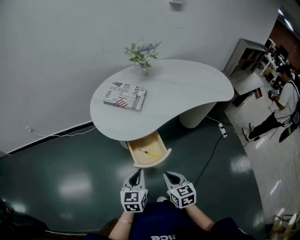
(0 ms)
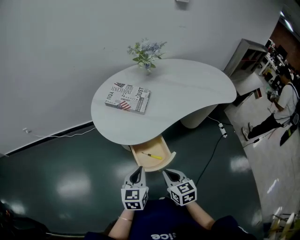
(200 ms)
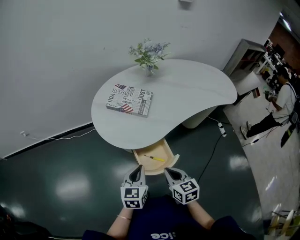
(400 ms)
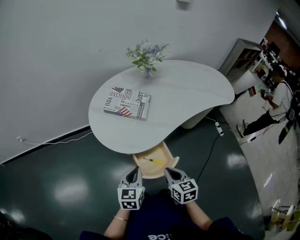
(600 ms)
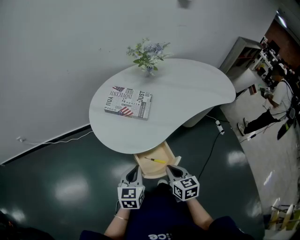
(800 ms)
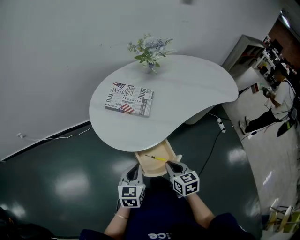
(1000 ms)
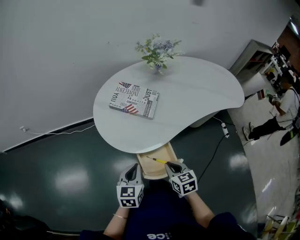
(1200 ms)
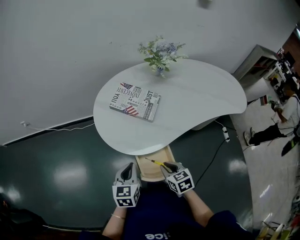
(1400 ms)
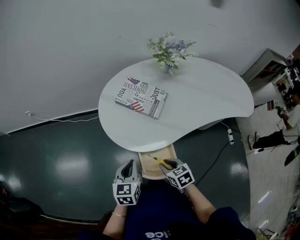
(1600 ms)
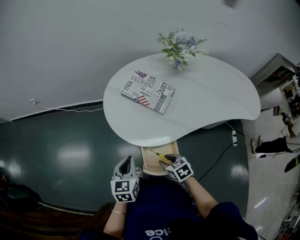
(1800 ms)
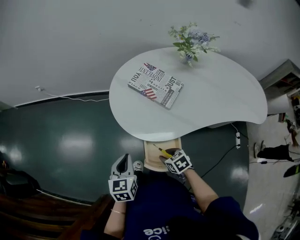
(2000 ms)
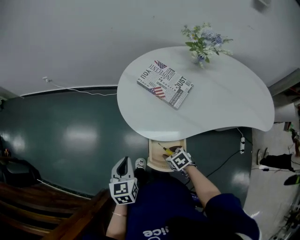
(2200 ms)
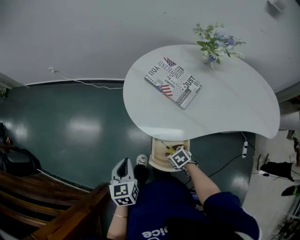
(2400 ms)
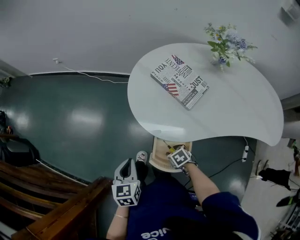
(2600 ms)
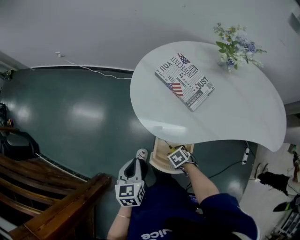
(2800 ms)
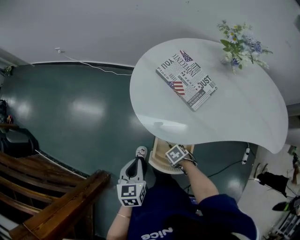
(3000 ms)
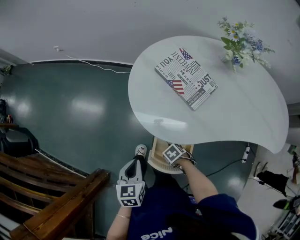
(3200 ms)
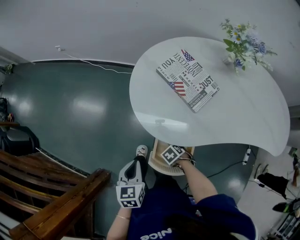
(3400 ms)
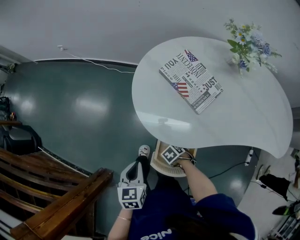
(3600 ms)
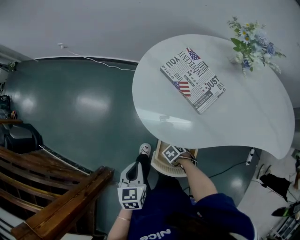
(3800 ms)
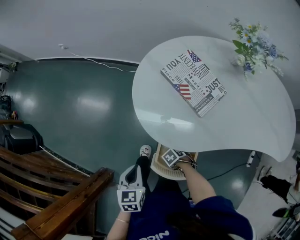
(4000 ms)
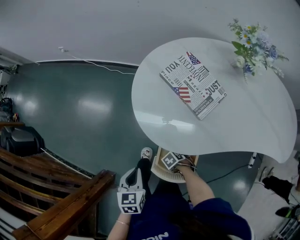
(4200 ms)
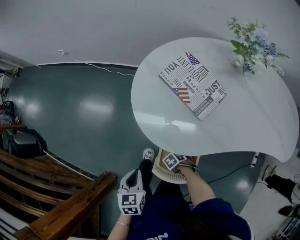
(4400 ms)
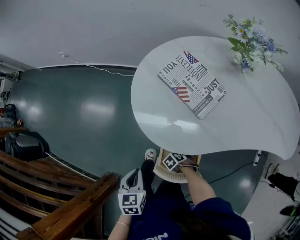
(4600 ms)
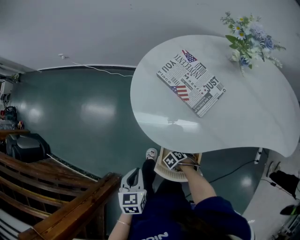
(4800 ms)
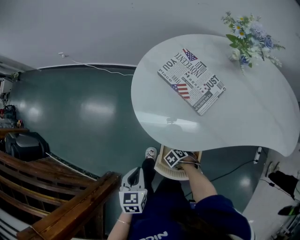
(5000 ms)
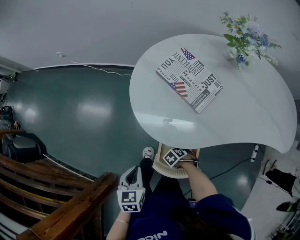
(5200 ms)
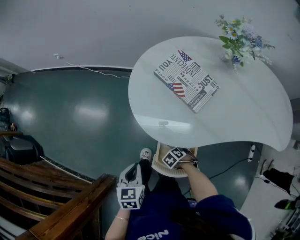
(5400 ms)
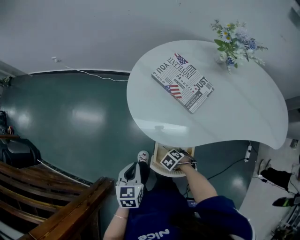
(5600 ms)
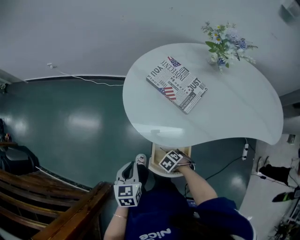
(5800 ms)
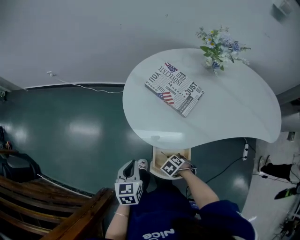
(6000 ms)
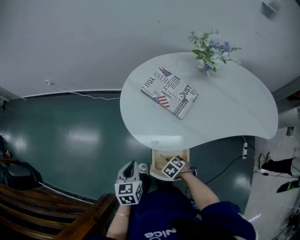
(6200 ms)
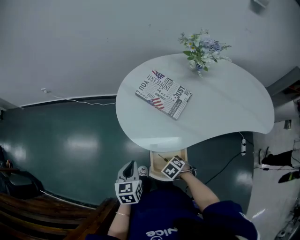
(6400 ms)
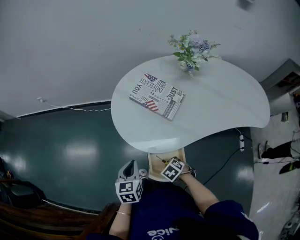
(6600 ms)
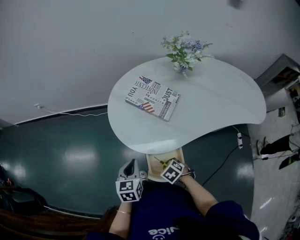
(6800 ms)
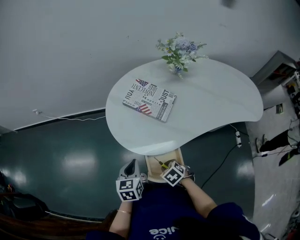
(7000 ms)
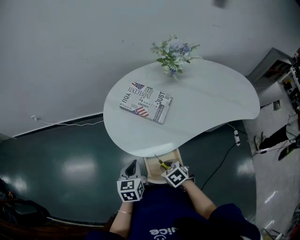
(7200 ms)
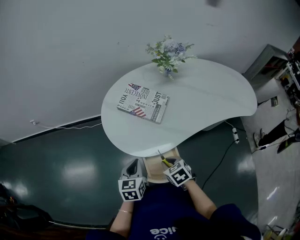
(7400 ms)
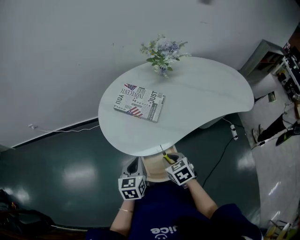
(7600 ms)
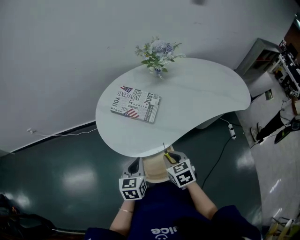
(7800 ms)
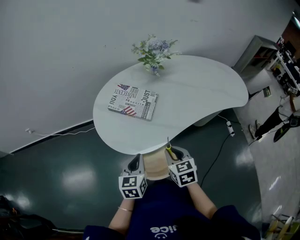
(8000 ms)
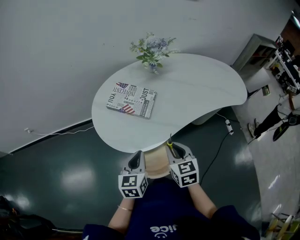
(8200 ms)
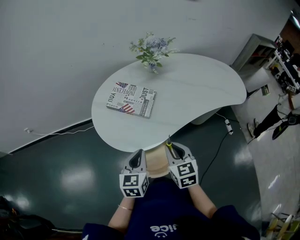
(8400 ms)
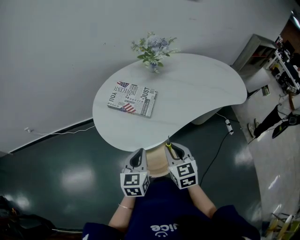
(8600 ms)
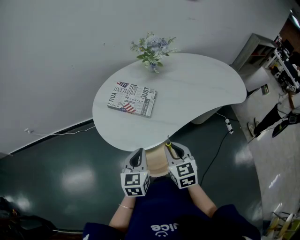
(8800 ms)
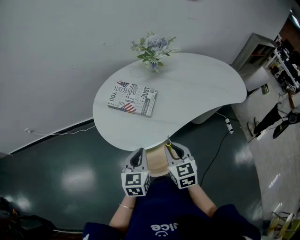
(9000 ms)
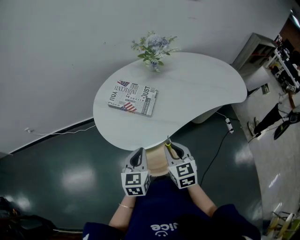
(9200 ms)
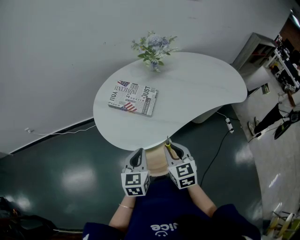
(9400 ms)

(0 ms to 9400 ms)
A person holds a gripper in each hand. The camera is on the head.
0 ms - 1600 ms: The right gripper shifts approximately 15 cm forward and downward, rotates approximately 30 degrees, and opens its fingers, while the left gripper heads forward and to the left, covering roughly 15 cm.
1600 ms - 3200 ms: The right gripper travels downward by approximately 20 cm, turns by approximately 50 degrees, and opens up. Meanwhile the left gripper ends up approximately 10 cm from where it was, and rotates some 30 degrees.
3200 ms - 4800 ms: The right gripper heads downward, covering some 5 cm, and closes.
4800 ms - 6200 ms: The right gripper shifts some 10 cm upward. The left gripper moves roughly 5 cm.
6200 ms - 7800 ms: The right gripper goes about 20 cm upward, and tips its fingers upward by roughly 40 degrees. The left gripper moves approximately 10 cm, and changes its angle by about 20 degrees.
7800 ms - 9400 ms: The right gripper heads upward, covering about 5 cm.

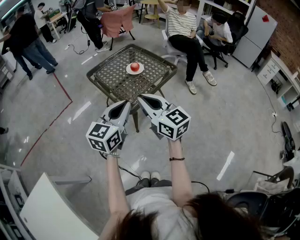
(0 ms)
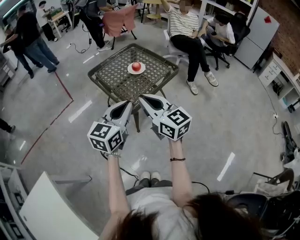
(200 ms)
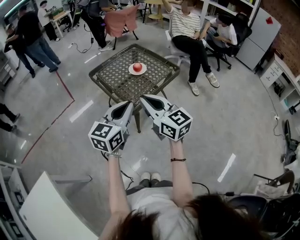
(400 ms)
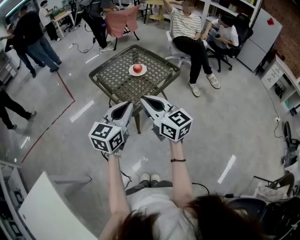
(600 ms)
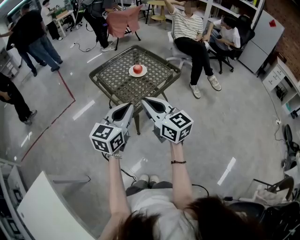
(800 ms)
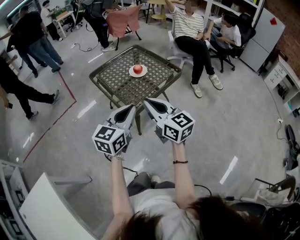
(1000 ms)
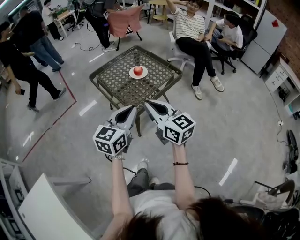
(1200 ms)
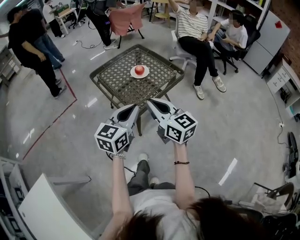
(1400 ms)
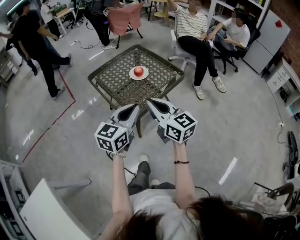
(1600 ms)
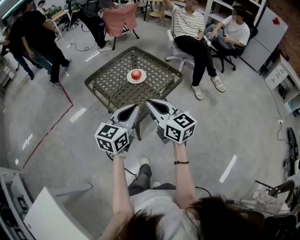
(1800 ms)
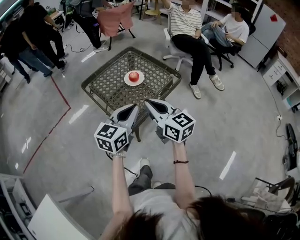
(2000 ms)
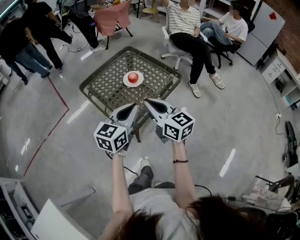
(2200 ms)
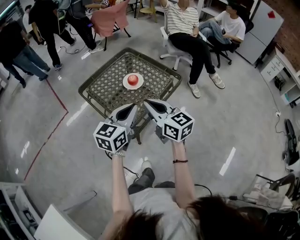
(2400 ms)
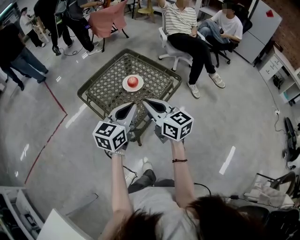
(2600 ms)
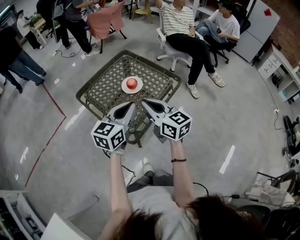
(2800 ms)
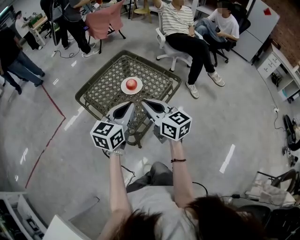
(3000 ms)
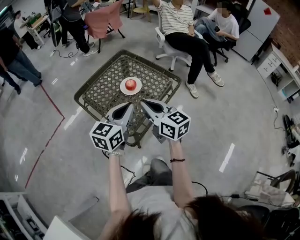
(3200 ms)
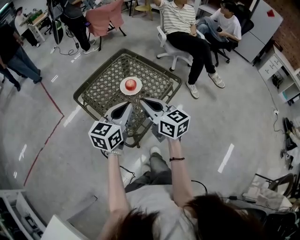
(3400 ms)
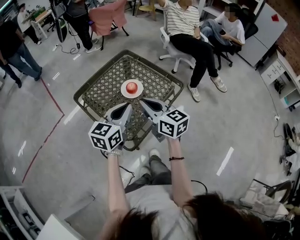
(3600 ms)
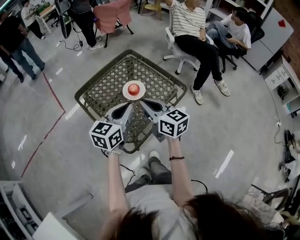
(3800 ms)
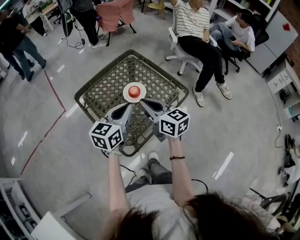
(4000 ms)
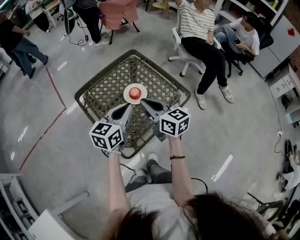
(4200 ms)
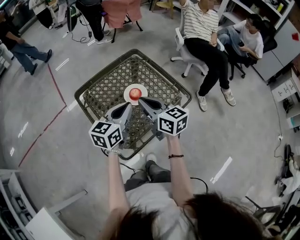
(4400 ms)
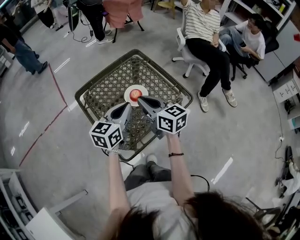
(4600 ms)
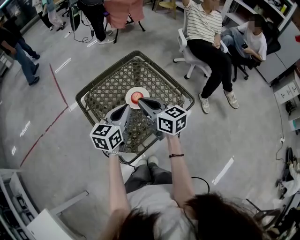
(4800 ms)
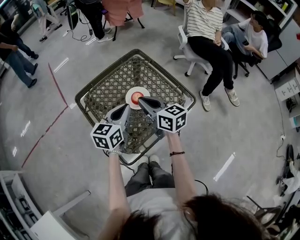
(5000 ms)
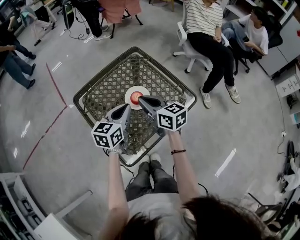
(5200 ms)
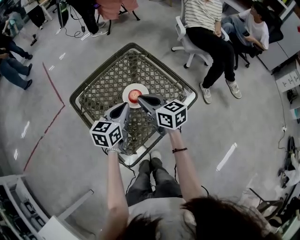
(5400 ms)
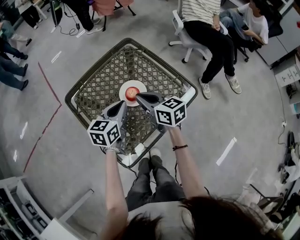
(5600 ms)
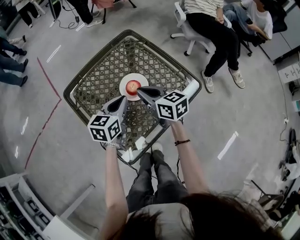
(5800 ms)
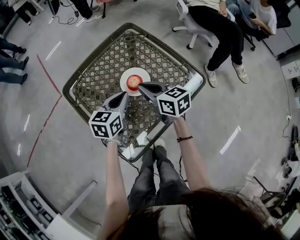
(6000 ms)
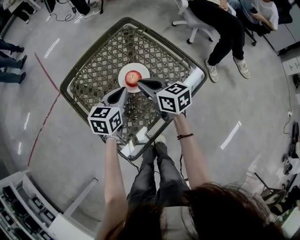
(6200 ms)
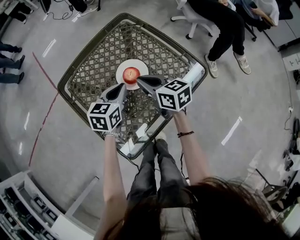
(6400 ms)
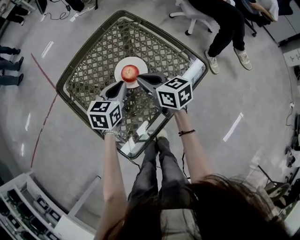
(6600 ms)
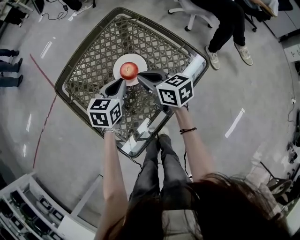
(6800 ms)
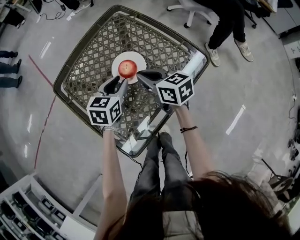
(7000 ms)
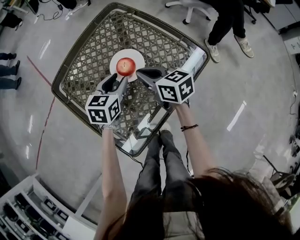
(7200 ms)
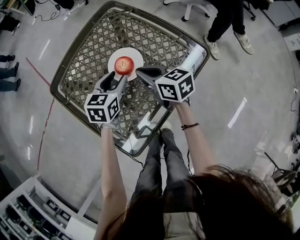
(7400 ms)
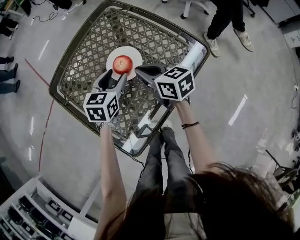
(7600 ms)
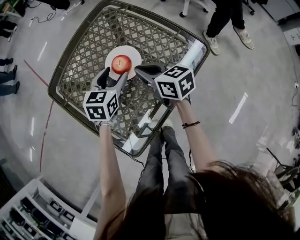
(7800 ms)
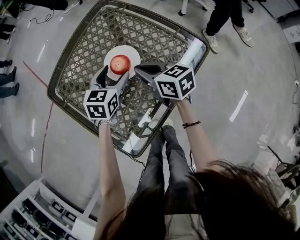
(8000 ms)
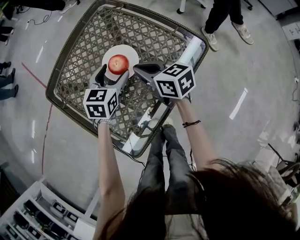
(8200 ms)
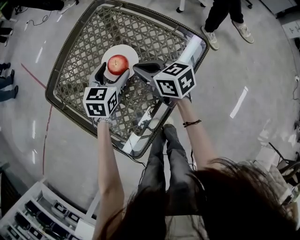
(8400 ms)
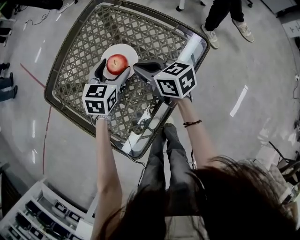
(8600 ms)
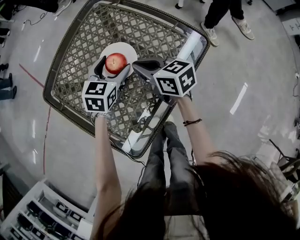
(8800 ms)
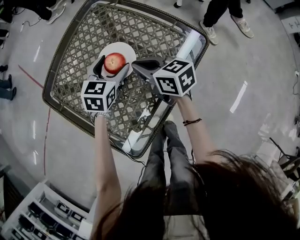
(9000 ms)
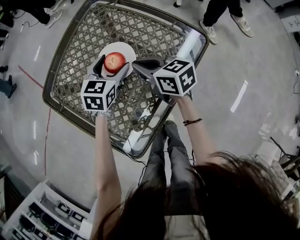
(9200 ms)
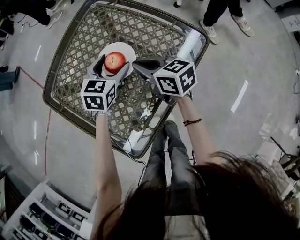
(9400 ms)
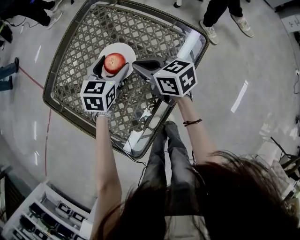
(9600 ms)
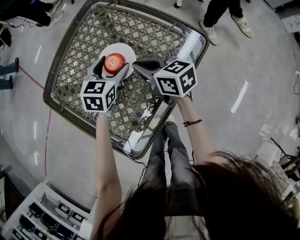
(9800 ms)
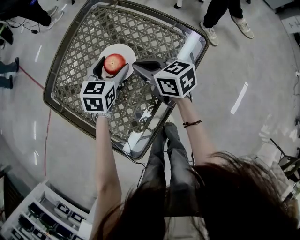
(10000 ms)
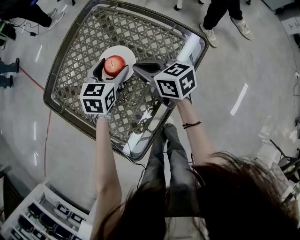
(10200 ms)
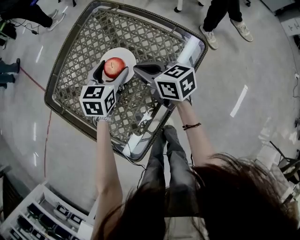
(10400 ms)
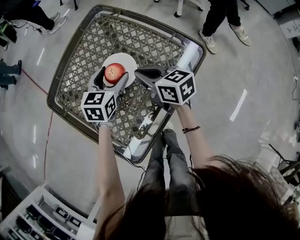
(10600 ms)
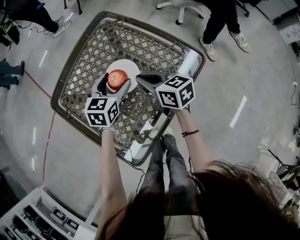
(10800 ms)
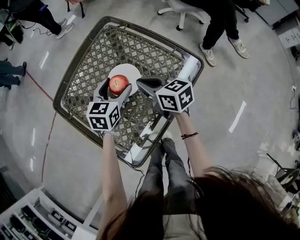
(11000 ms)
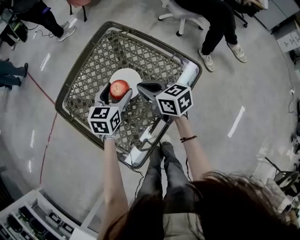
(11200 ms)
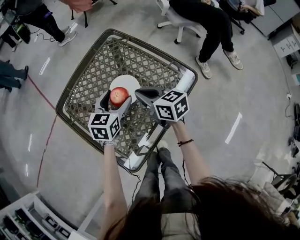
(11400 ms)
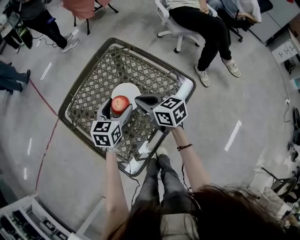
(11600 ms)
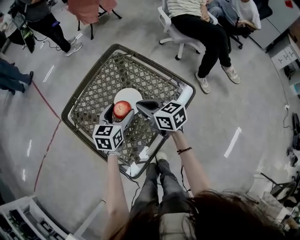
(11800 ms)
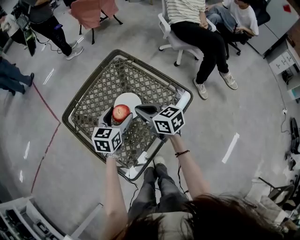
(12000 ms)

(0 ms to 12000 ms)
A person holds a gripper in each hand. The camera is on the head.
0 ms - 1600 ms: Both grippers travel together forward and to the right, about 10 cm.
1600 ms - 3000 ms: The two grippers go approximately 15 cm forward.
3000 ms - 4400 ms: Both grippers move forward, some 15 cm.
4400 ms - 6000 ms: Both grippers travel together downward and forward, about 15 cm.
6000 ms - 7600 ms: The grippers both shift downward by about 10 cm. The left gripper opens its fingers.
7600 ms - 9000 ms: The left gripper ends up some 5 cm from where it was, and opens up.
9000 ms - 10400 ms: Neither gripper changes place.
10400 ms - 12000 ms: The right gripper travels upward by roughly 10 cm. Meanwhile the left gripper travels upward and backward by some 10 cm.

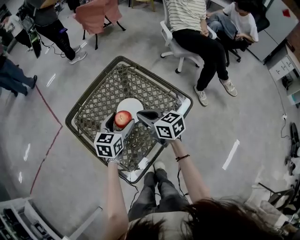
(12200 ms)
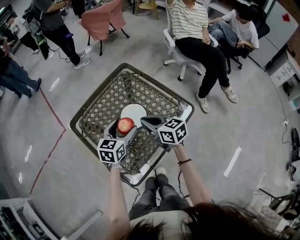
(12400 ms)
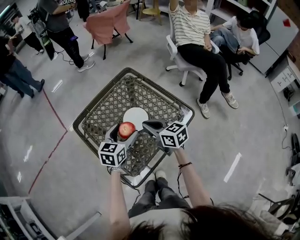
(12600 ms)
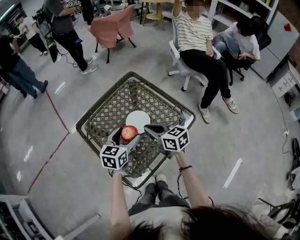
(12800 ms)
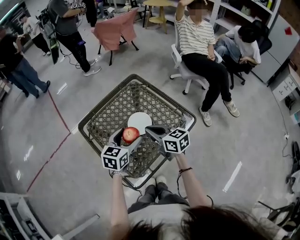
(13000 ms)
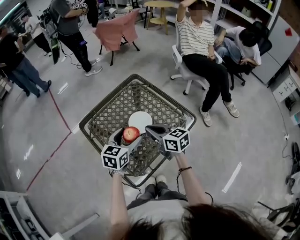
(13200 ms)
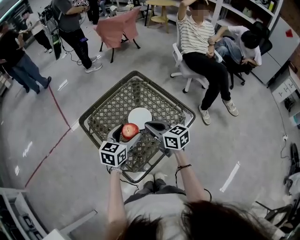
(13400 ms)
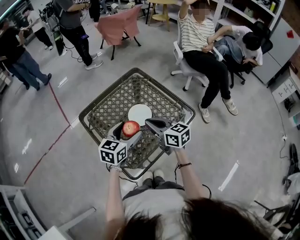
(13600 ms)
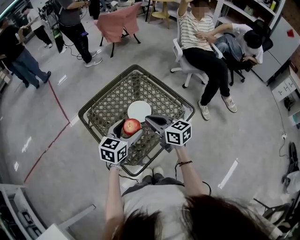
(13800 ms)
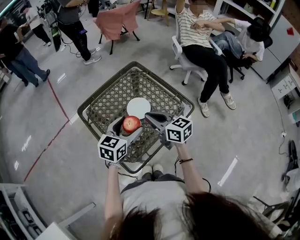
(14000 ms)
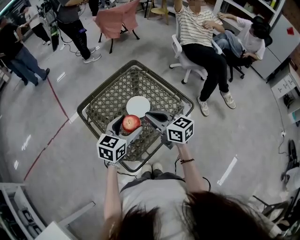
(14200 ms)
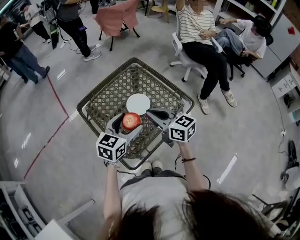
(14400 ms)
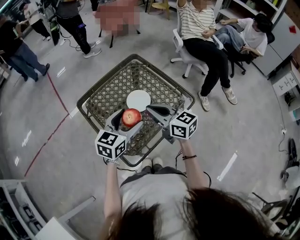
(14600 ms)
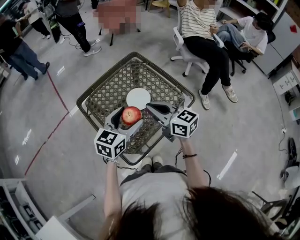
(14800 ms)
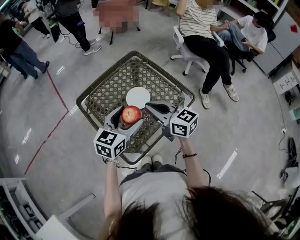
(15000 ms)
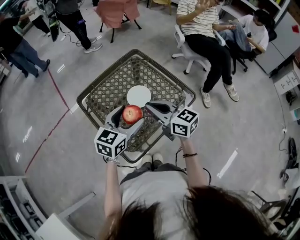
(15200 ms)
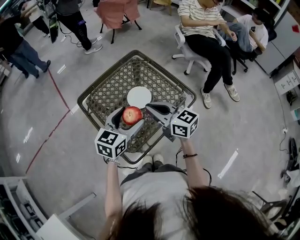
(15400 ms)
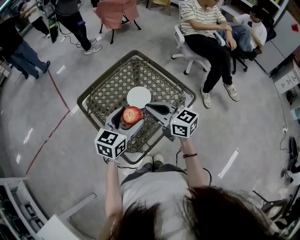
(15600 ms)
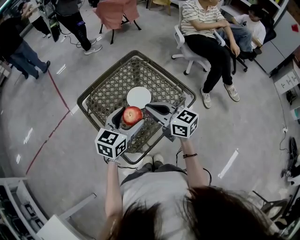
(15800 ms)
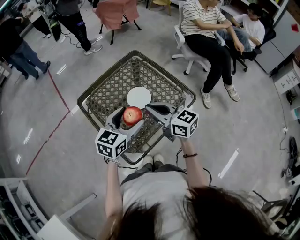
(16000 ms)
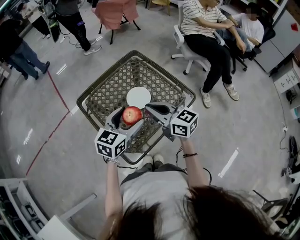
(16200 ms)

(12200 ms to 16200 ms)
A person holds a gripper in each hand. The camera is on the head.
12200 ms - 13600 ms: The left gripper is displaced backward and upward by approximately 10 cm, while the right gripper is displaced upward and backward by some 10 cm.
13600 ms - 14800 ms: The left gripper ends up roughly 5 cm from where it was. The right gripper shifts roughly 5 cm upward.
14800 ms - 16200 ms: Both grippers stay about where they are.
